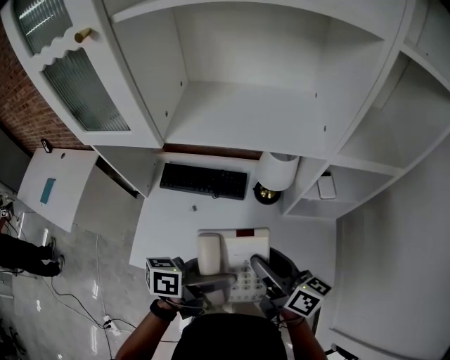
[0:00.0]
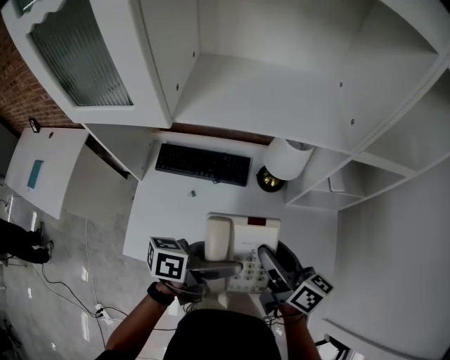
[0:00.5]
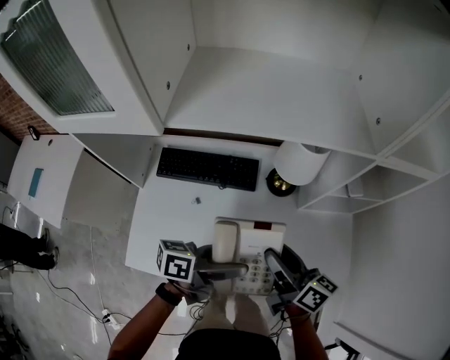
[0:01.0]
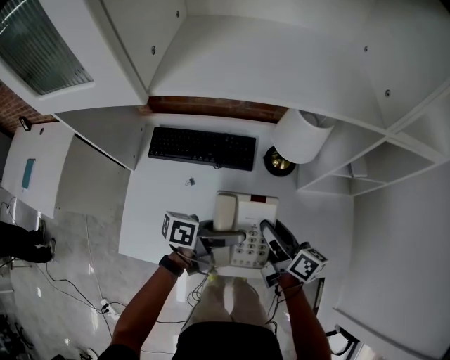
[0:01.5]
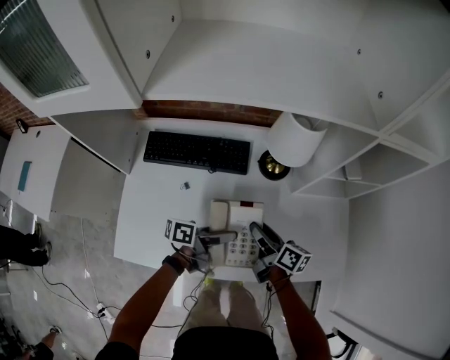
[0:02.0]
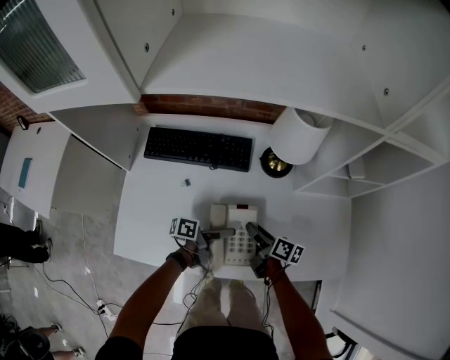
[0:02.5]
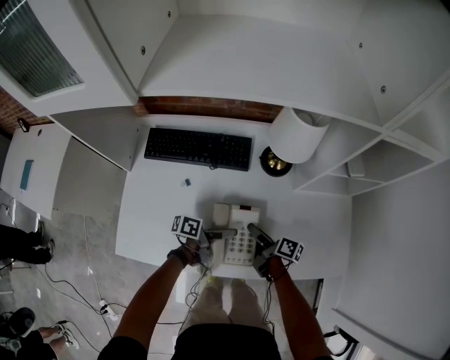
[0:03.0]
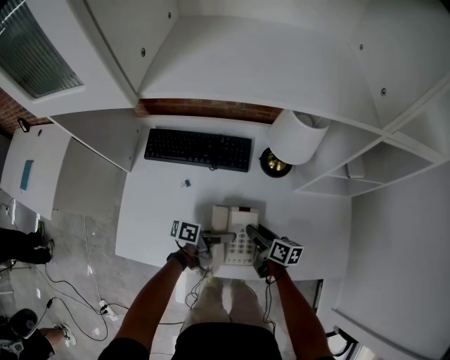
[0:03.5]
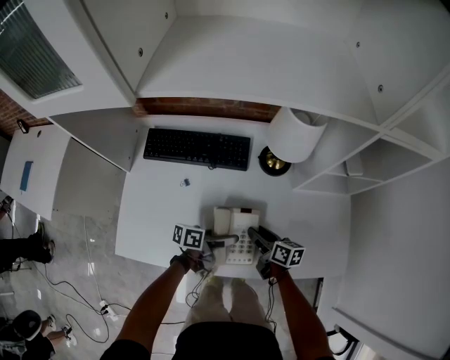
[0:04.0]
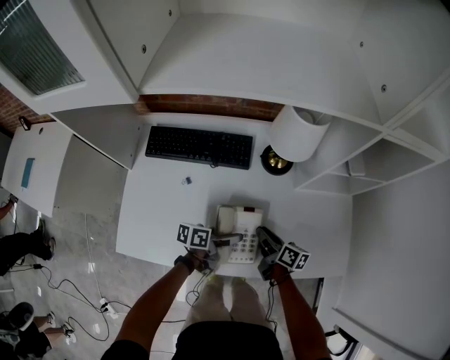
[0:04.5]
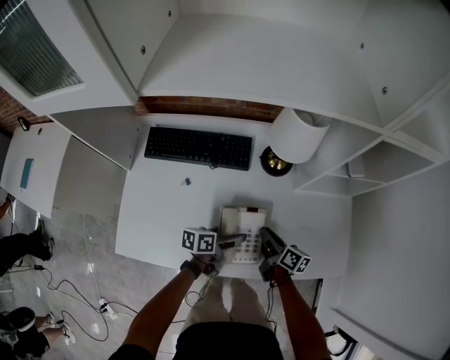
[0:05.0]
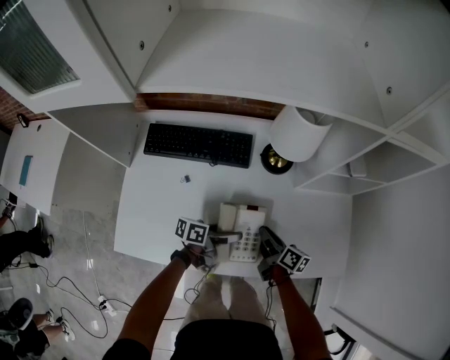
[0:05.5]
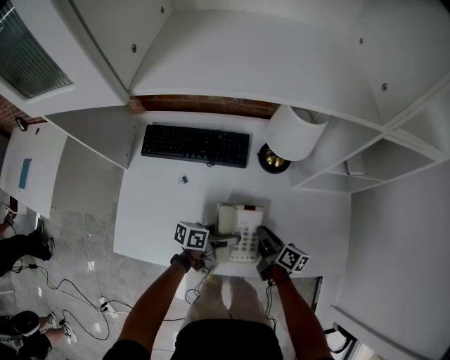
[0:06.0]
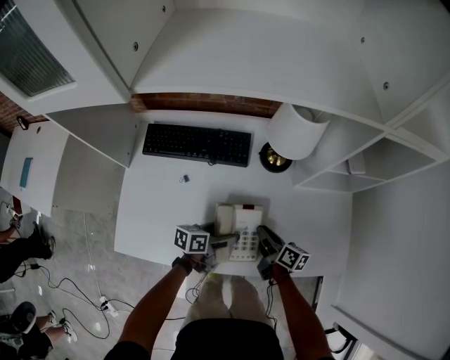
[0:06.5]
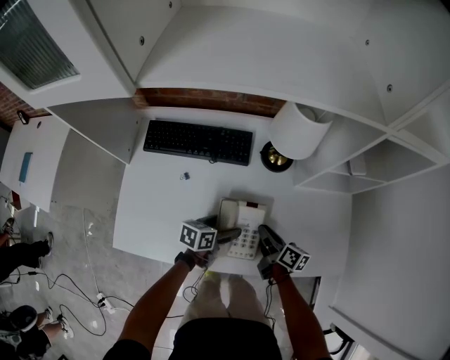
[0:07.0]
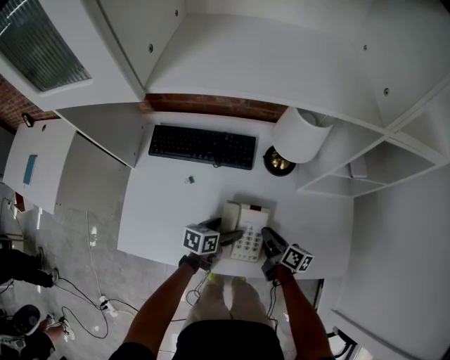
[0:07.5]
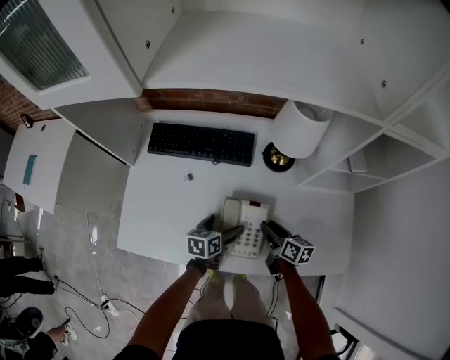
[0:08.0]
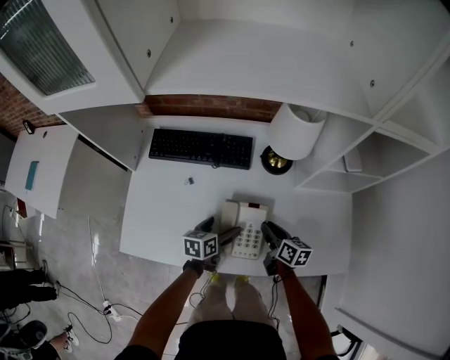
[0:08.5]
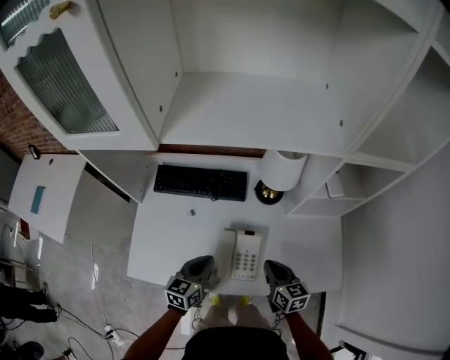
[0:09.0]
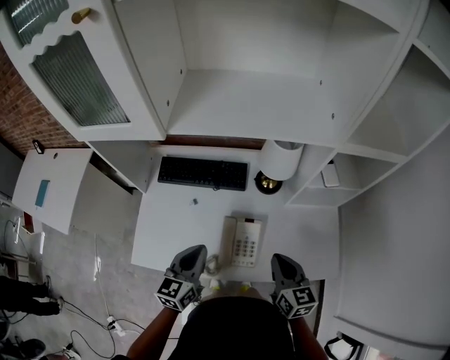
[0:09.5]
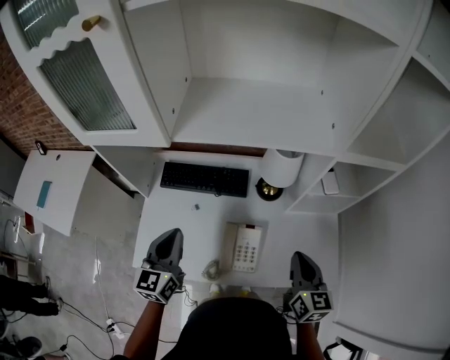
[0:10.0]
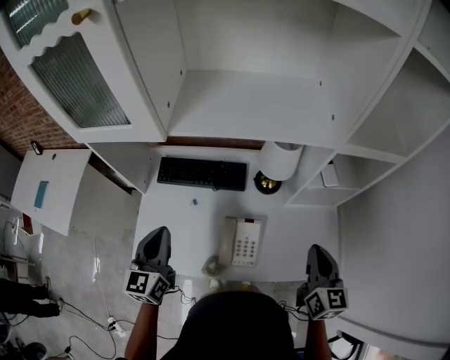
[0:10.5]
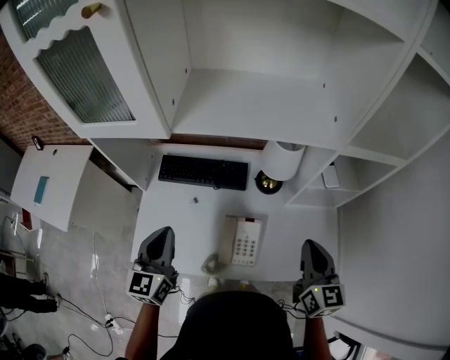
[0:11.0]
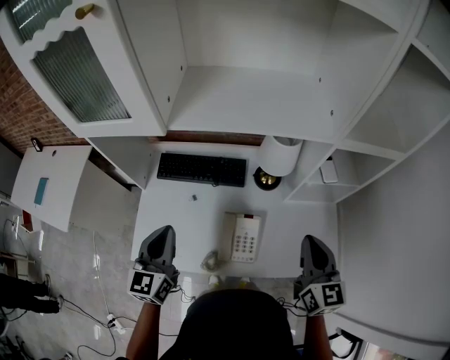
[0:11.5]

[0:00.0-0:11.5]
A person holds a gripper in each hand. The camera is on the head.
0:00.0 to 0:02.0: The two grippers go some 25 cm downward. The right gripper swivels roughly 20 degrees.
0:02.0 to 0:04.0: The grippers both shift downward by roughly 10 cm.
0:04.0 to 0:06.0: The right gripper closes up.
0:06.0 to 0:07.5: The left gripper rotates roughly 20 degrees.
0:07.5 to 0:09.5: Both grippers travel together upward, roughly 25 cm. The right gripper rotates around the line of its fingers by roughly 40 degrees, counterclockwise from behind, and closes up, while the left gripper rotates roughly 40 degrees, and closes its fingers.
0:09.5 to 0:11.5: The left gripper travels upward and to the left by approximately 10 cm. The right gripper shifts about 15 cm upward and to the right.

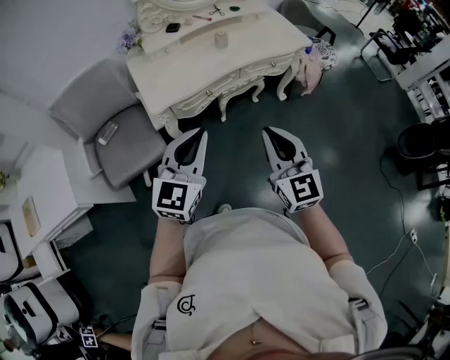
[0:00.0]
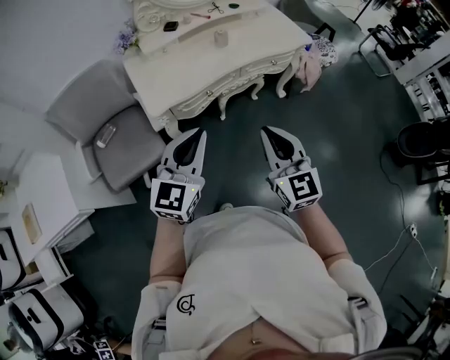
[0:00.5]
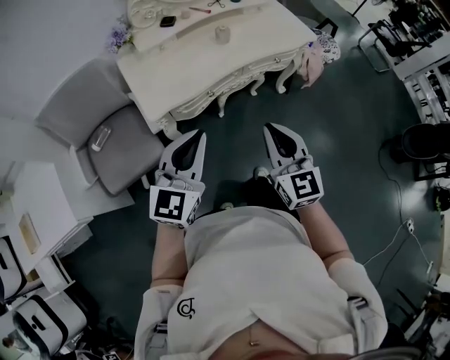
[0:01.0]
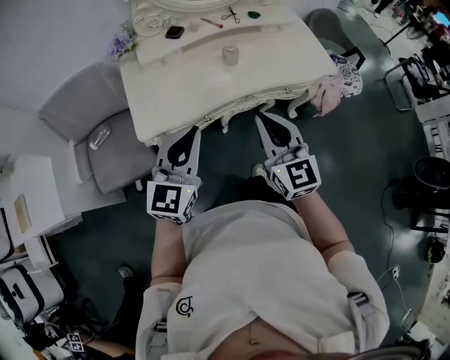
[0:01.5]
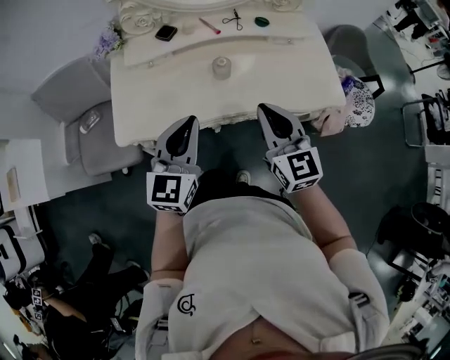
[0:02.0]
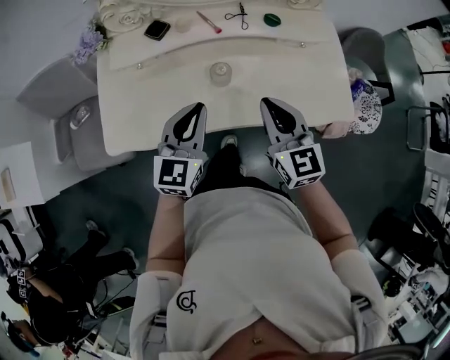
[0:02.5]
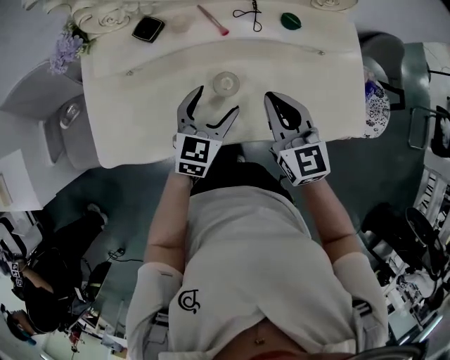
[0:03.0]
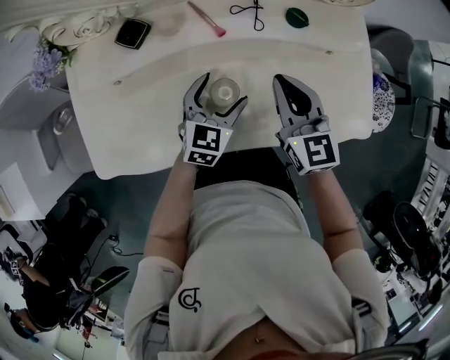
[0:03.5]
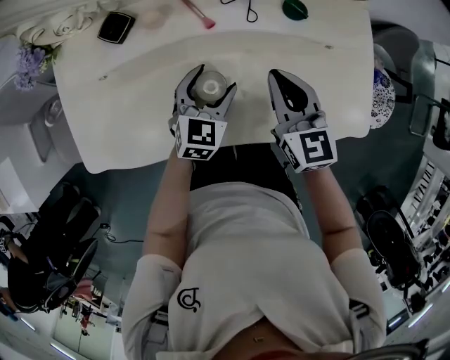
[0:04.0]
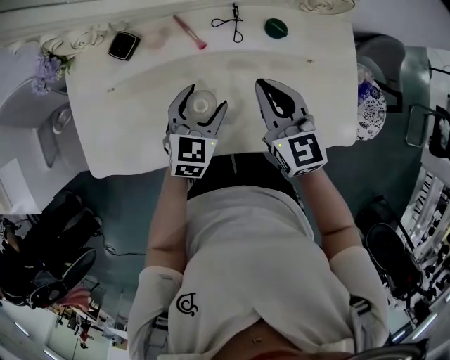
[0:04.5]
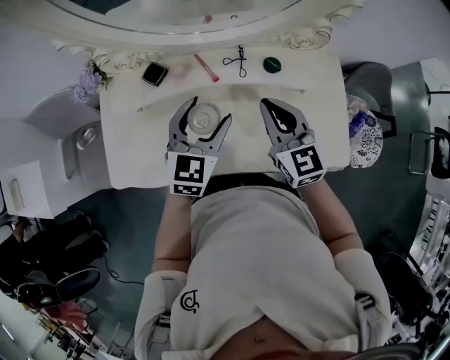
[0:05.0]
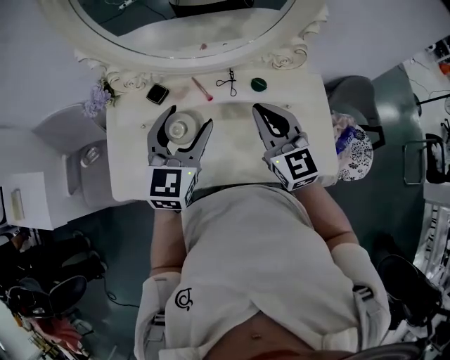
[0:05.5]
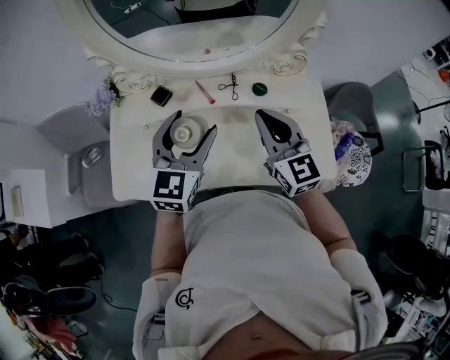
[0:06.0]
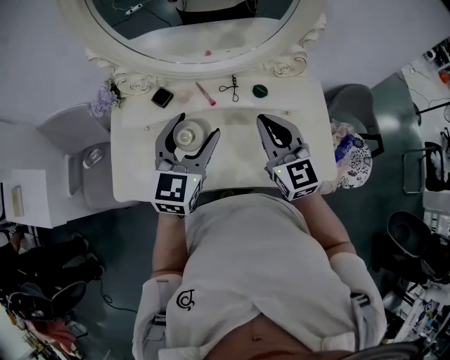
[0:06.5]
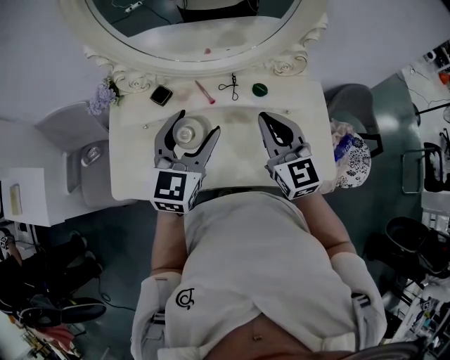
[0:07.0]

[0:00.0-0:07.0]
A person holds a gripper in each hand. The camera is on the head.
0:00.0 to 0:02.0: The left gripper changes place by about 35 cm, and rotates some 30 degrees. Meanwhile the right gripper moves about 40 cm, and turns by approximately 20 degrees.
0:02.0 to 0:03.5: The two grippers go some 30 cm forward and downward. The left gripper swivels about 20 degrees, and opens.
0:03.5 to 0:05.0: The right gripper shifts roughly 10 cm upward; the left gripper heads upward, covering approximately 20 cm.
0:05.0 to 0:07.0: Both grippers travel together upward, approximately 10 cm.

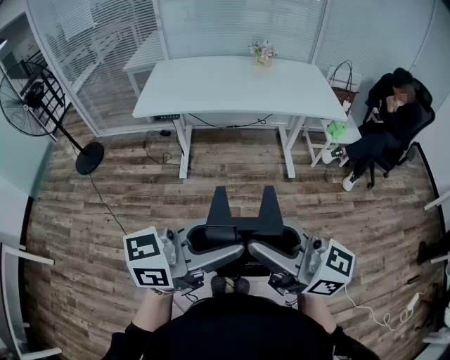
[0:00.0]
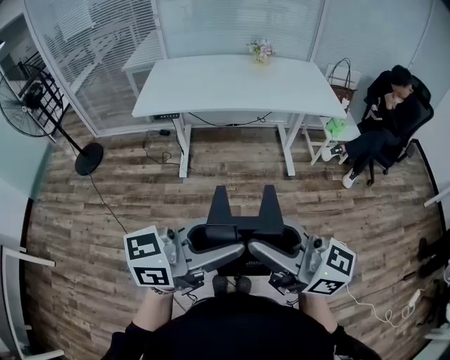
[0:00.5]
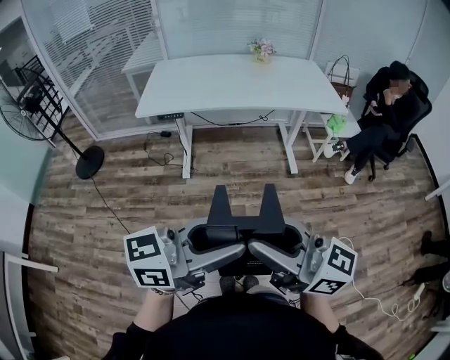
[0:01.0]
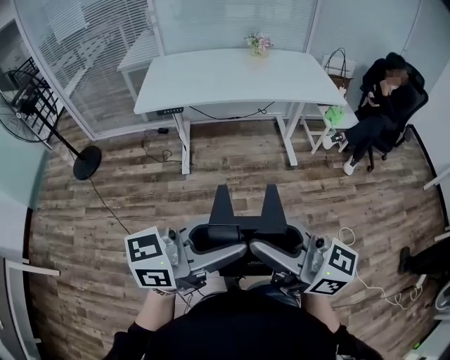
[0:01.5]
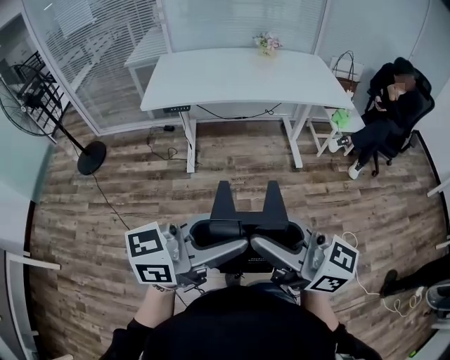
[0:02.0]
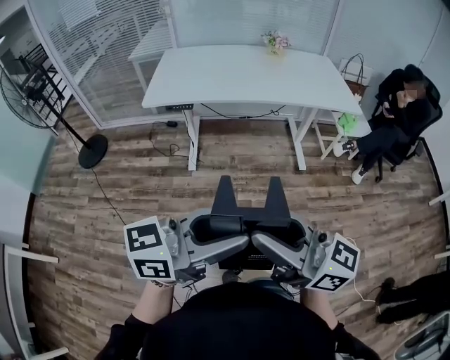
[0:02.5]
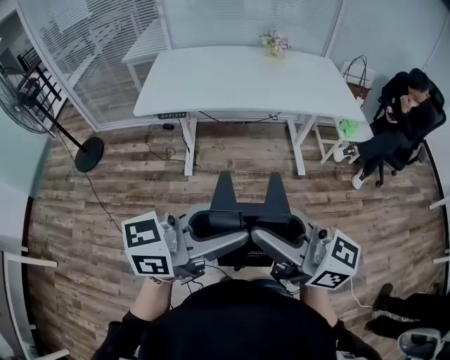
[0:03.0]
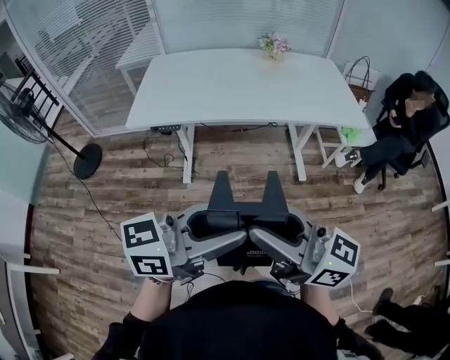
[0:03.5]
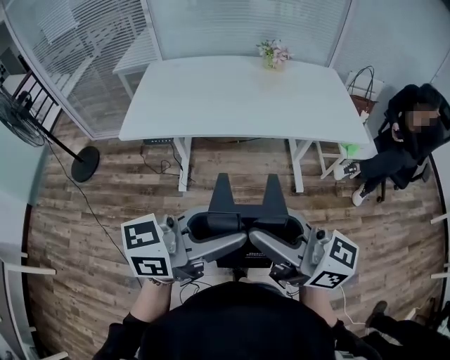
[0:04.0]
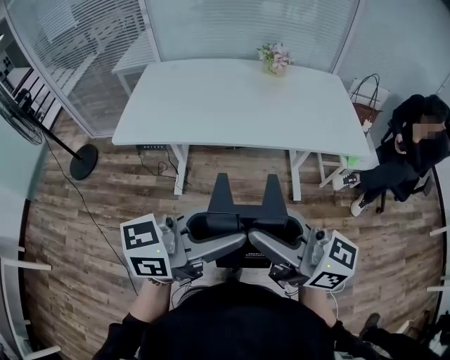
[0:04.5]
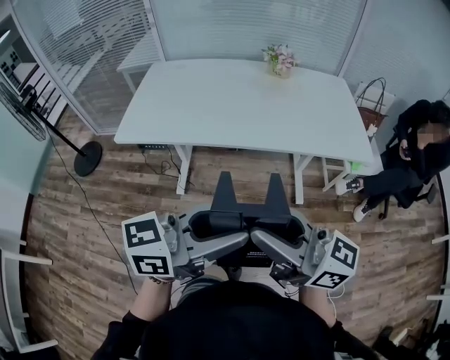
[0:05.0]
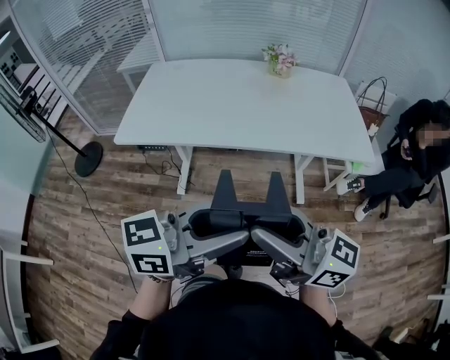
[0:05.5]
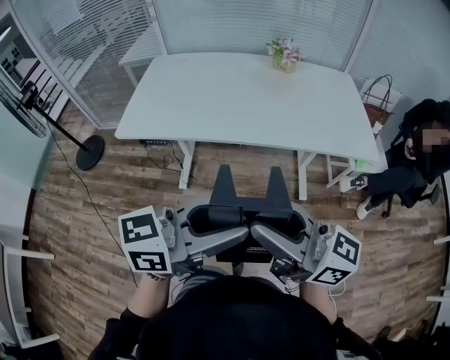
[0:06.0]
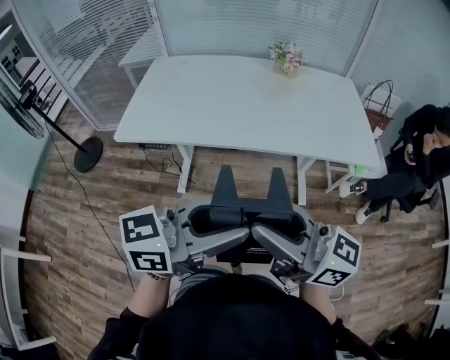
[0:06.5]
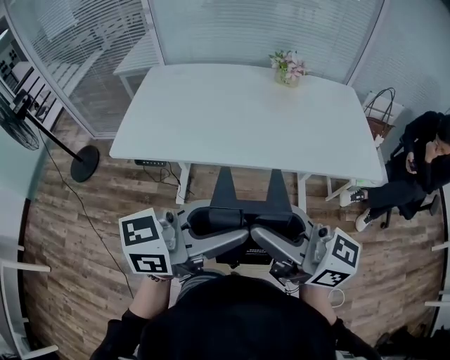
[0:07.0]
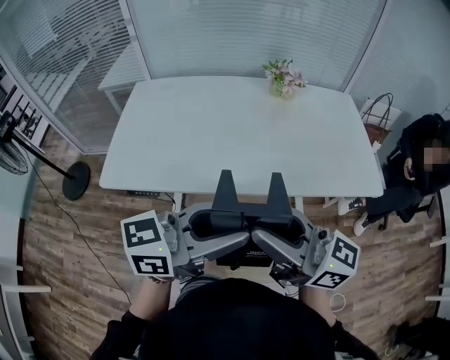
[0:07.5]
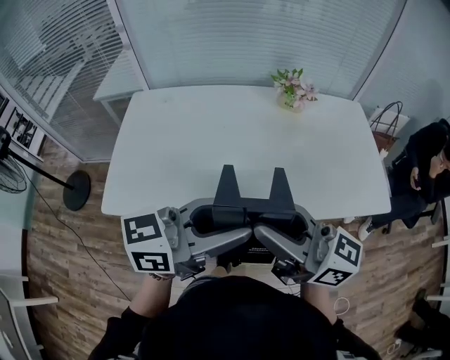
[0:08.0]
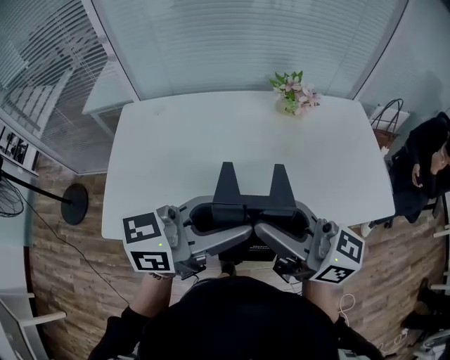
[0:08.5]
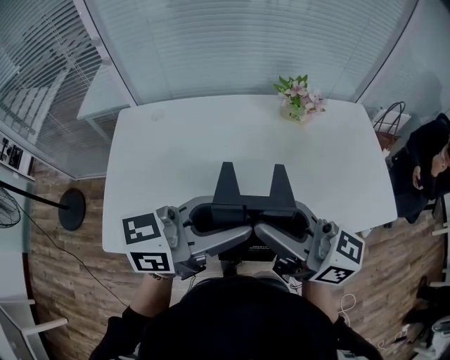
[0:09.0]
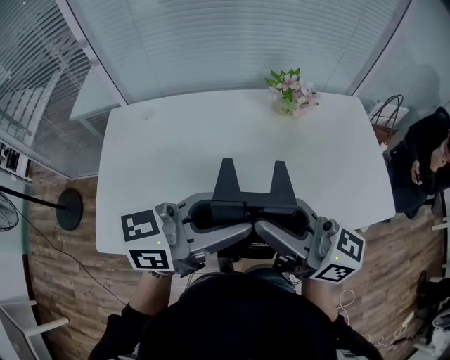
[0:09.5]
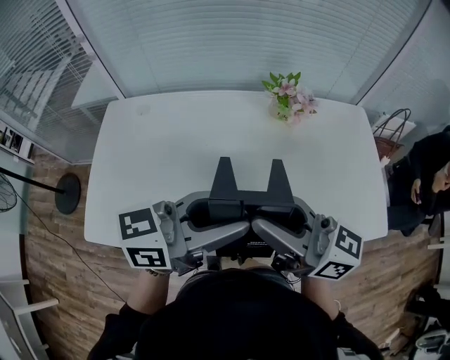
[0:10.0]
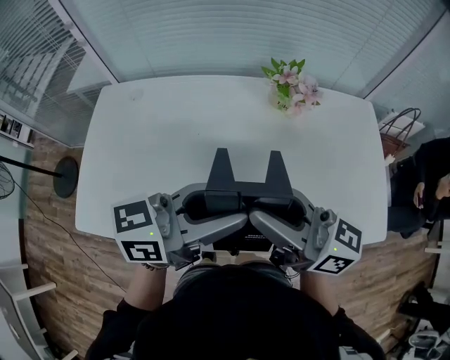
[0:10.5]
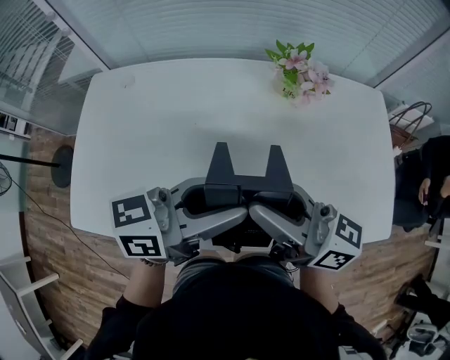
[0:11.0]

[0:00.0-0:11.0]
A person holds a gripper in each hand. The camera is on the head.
0:00.0 to 0:02.0: Both grippers move to the left, some 5 cm.
0:02.0 to 0:03.5: The two grippers go approximately 20 cm forward.
0:03.5 to 0:05.5: Both grippers travel together forward and to the right, some 15 cm.
0:05.5 to 0:07.5: The grippers both shift forward by approximately 20 cm.
0:07.5 to 0:09.0: The two grippers go some 25 cm forward and to the left.
0:09.0 to 0:11.0: The grippers both shift forward, to the right and downward by approximately 15 cm.
